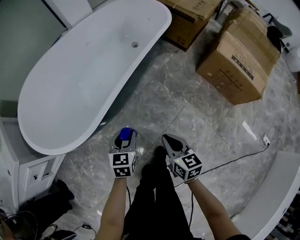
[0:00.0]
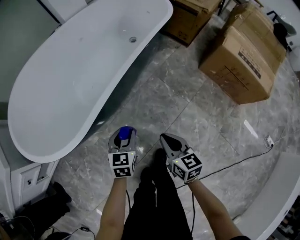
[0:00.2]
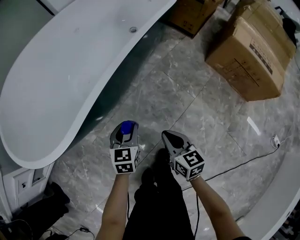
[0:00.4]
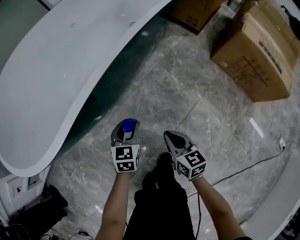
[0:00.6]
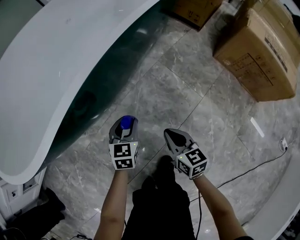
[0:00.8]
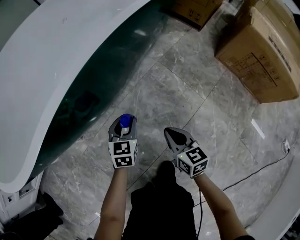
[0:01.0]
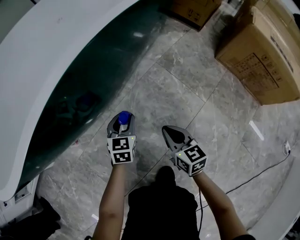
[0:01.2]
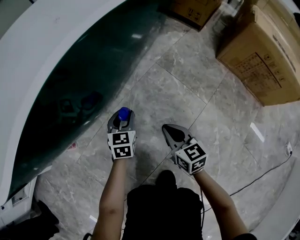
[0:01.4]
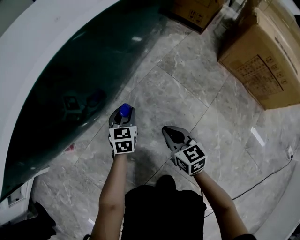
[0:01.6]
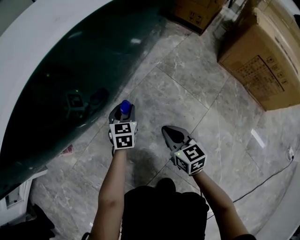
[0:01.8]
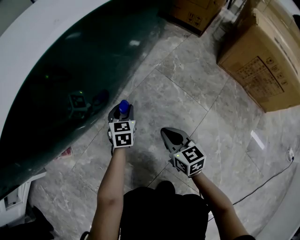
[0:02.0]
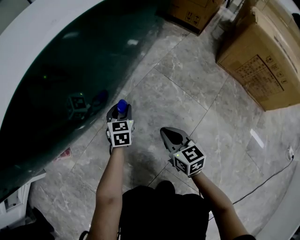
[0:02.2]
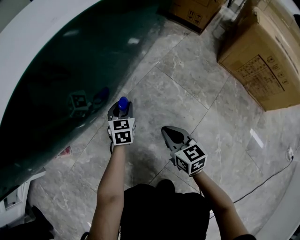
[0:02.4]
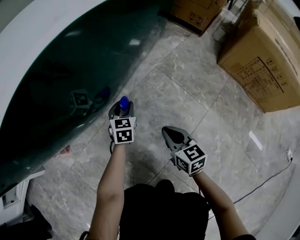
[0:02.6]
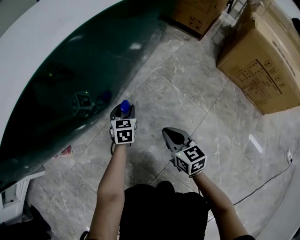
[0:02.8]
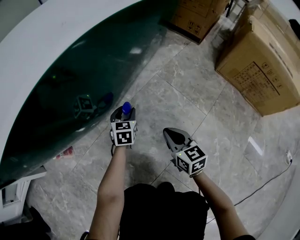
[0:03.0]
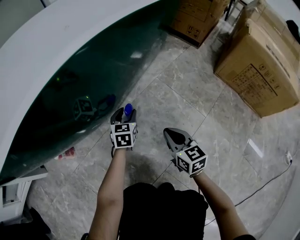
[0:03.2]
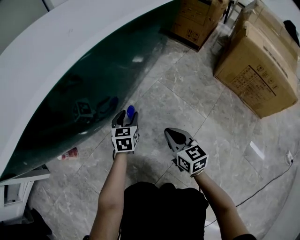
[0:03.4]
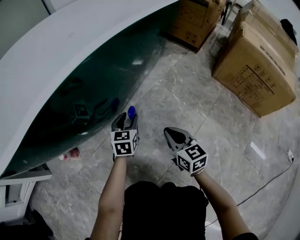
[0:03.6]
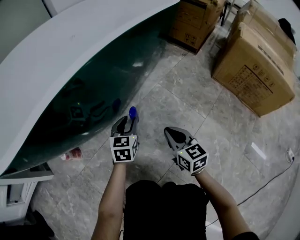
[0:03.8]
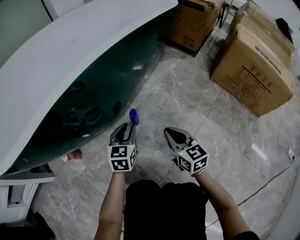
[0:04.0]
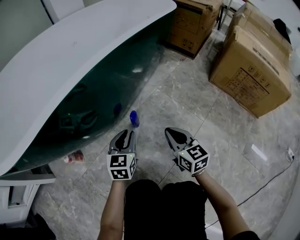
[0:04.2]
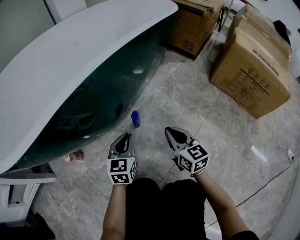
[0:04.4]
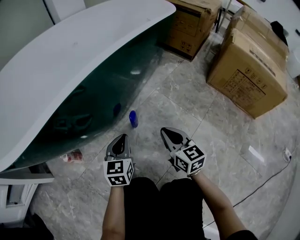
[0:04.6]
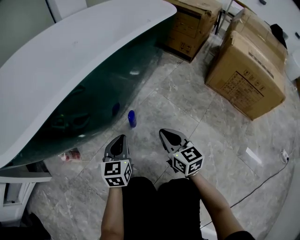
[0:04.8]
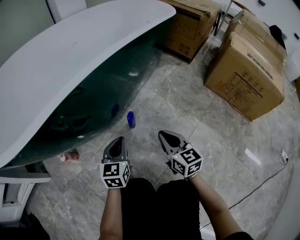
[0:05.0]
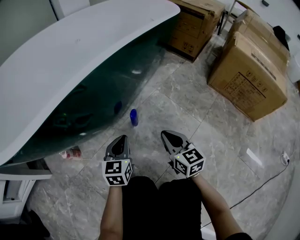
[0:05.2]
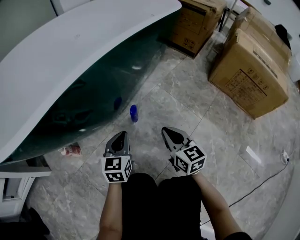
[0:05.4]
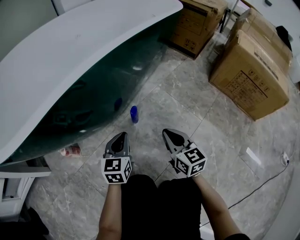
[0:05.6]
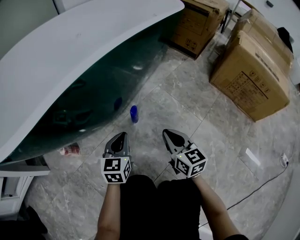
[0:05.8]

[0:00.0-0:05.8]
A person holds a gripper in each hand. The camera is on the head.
0.0 to 1.4 s: Both grippers travel together downward, about 40 cm.
1.4 to 2.8 s: The left gripper heads downward and forward, covering approximately 10 cm.
2.8 to 4.4 s: The left gripper shifts roughly 20 cm upward and backward, and closes its fingers, while the right gripper travels upward by approximately 10 cm.
4.4 to 5.8 s: The grippers stay close to where they were, moving slightly.

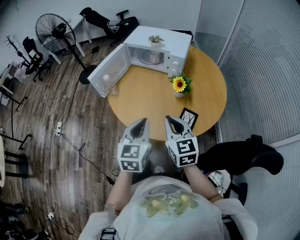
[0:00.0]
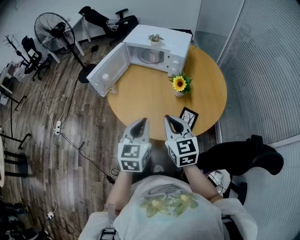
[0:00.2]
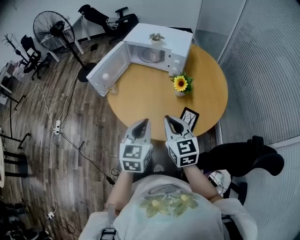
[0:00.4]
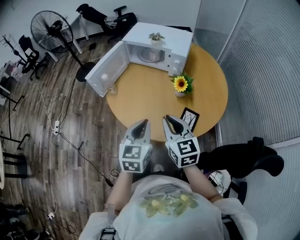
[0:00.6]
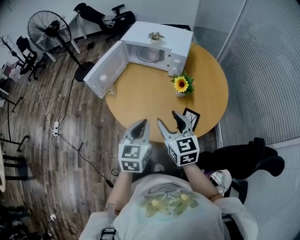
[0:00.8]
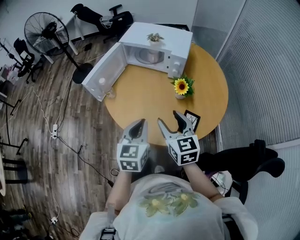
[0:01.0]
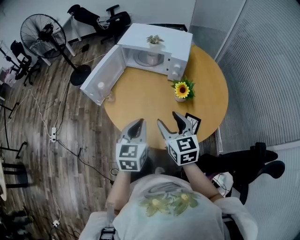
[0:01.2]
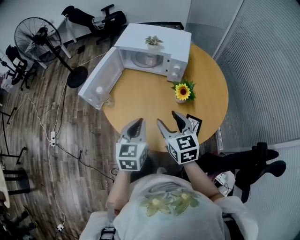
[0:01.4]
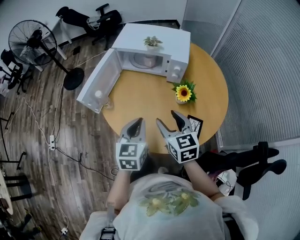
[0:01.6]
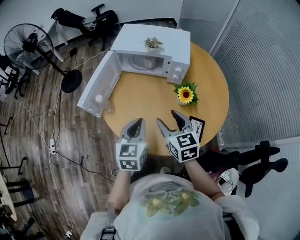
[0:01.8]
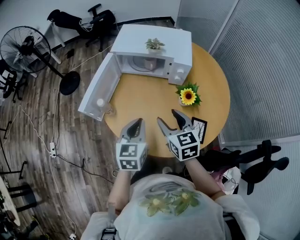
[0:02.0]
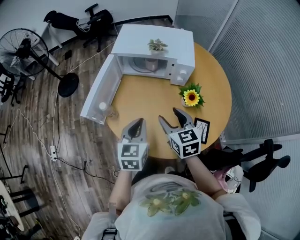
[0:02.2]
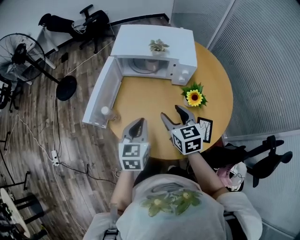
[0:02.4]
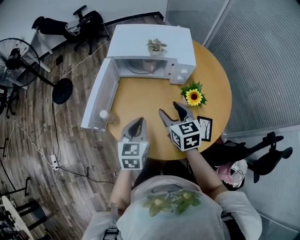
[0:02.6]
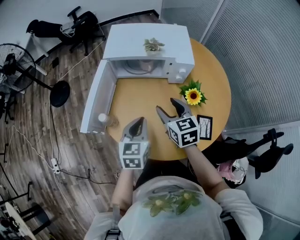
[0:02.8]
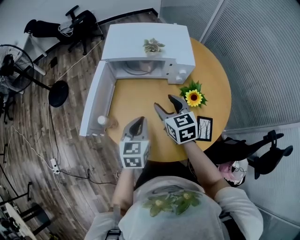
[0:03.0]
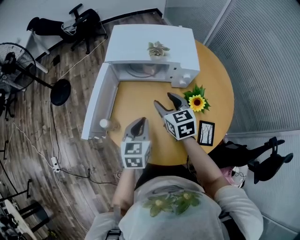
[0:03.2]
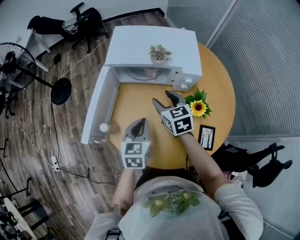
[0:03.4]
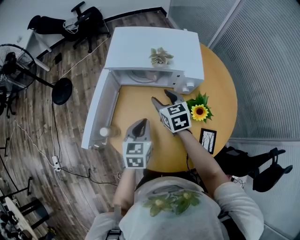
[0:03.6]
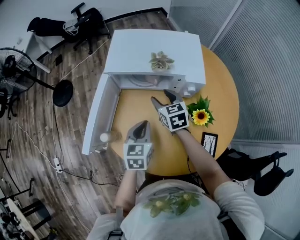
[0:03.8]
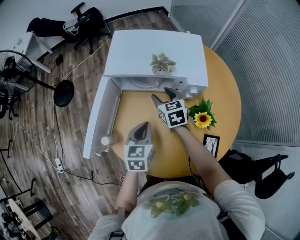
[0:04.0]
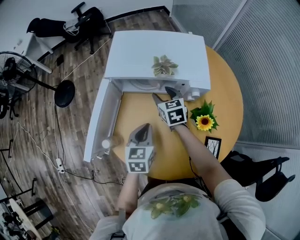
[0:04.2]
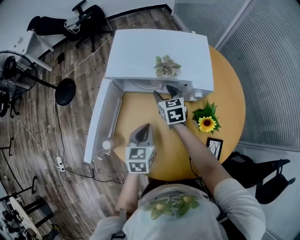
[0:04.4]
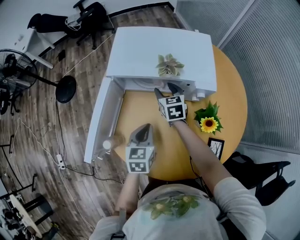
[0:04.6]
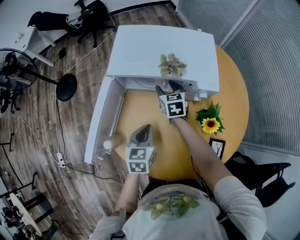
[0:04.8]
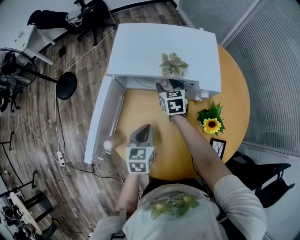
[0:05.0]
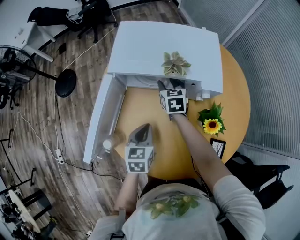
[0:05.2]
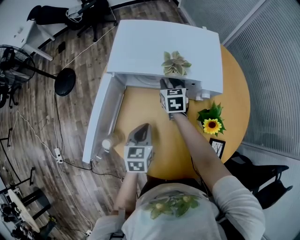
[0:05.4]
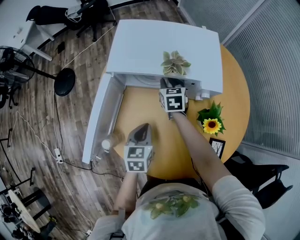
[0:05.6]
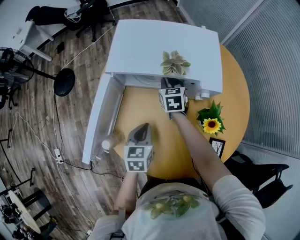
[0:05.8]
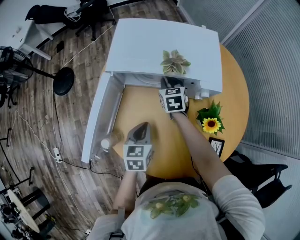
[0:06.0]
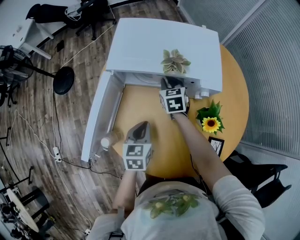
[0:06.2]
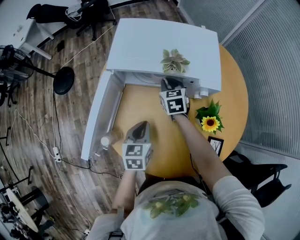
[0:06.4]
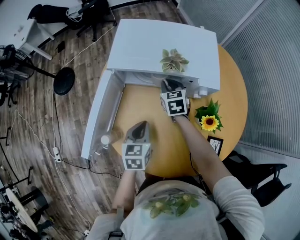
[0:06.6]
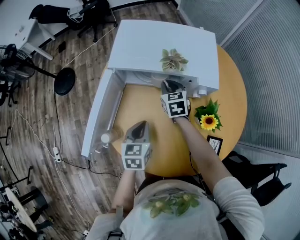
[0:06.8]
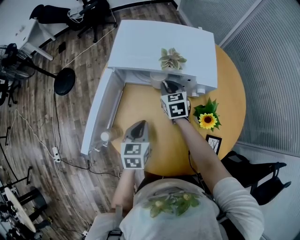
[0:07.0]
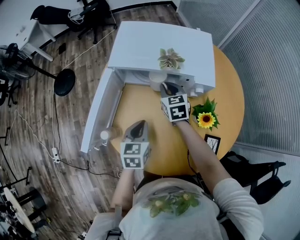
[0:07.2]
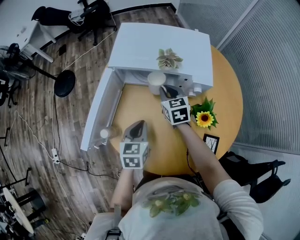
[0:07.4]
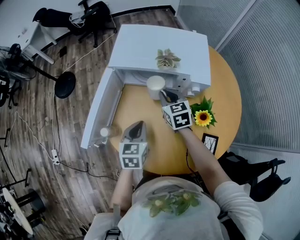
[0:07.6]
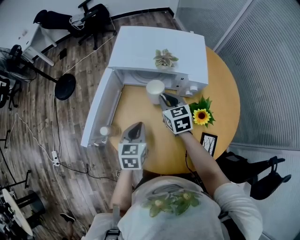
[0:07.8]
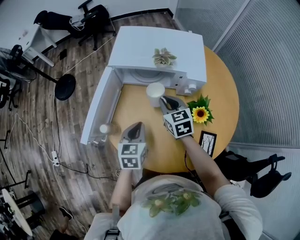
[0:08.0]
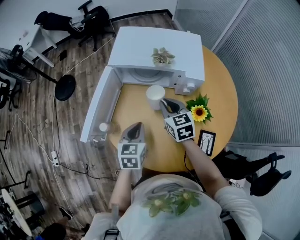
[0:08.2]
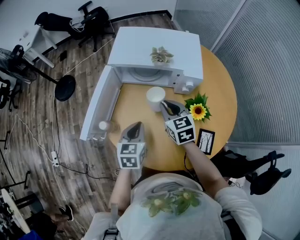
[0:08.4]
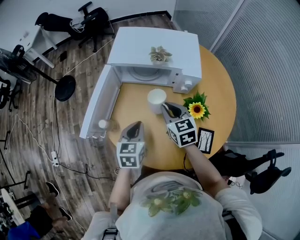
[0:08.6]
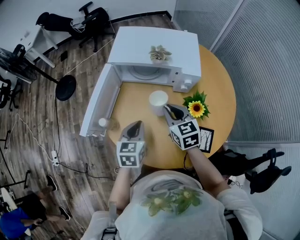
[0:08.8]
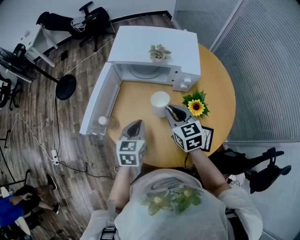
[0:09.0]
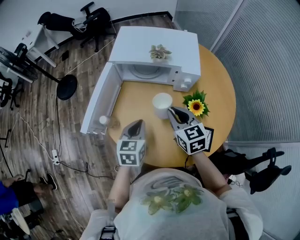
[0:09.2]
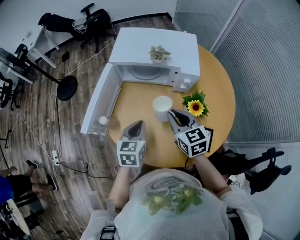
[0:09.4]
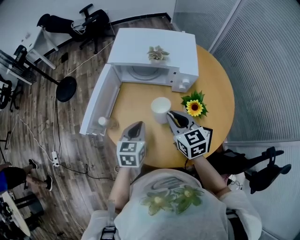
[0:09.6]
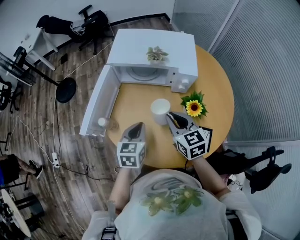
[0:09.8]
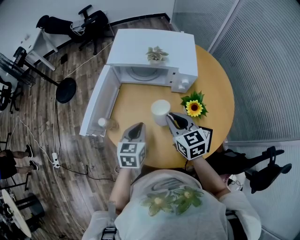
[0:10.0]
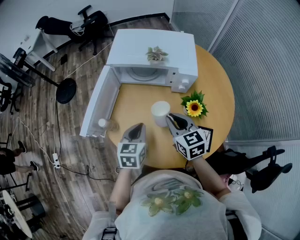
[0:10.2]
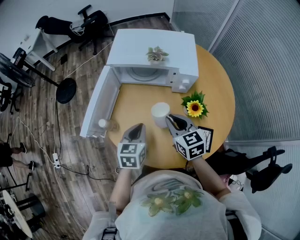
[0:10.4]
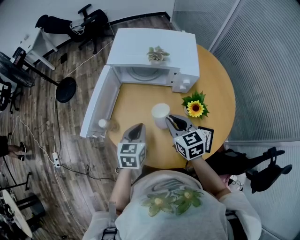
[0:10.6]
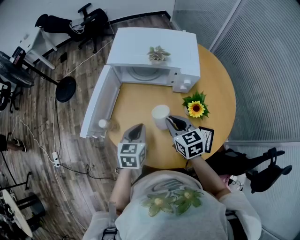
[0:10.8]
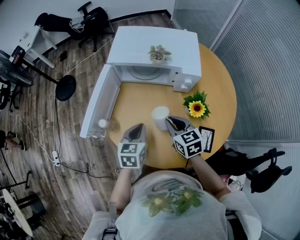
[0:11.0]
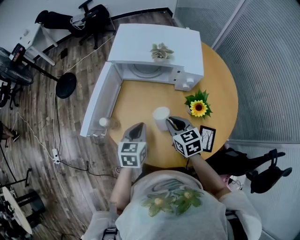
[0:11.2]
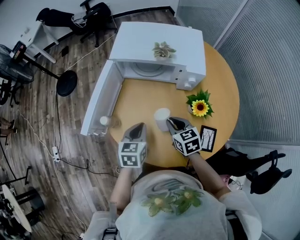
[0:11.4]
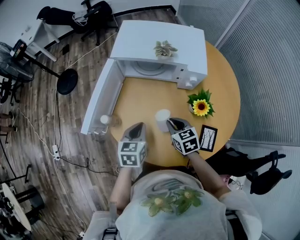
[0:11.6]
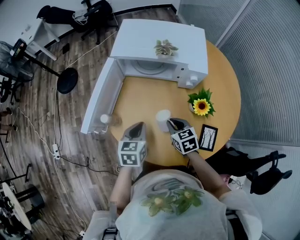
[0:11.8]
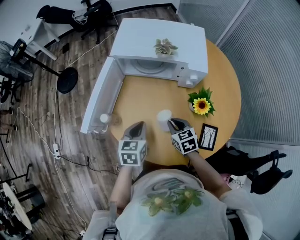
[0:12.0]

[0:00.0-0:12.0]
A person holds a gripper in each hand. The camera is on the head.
0.0 to 1.6 s: The two grippers go some 15 cm forward. The right gripper opens up.
1.6 to 3.0 s: The left gripper is displaced forward, to the left and downward by roughly 15 cm. Meanwhile the right gripper travels forward by about 15 cm.
3.0 to 4.4 s: The right gripper heads forward and downward, covering some 20 cm, while the left gripper heads forward and downward, covering approximately 10 cm.
4.4 to 6.0 s: The right gripper moves about 5 cm, and closes its fingers.
6.0 to 7.6 s: The right gripper goes about 10 cm backward and upward. Meanwhile the left gripper ends up approximately 5 cm from where it was.
7.6 to 9.0 s: The left gripper shifts roughly 5 cm backward. Meanwhile the right gripper travels backward and upward by about 15 cm.
9.0 to 10.4 s: There are only small adjustments of the grippers.
10.4 to 12.0 s: The right gripper heads downward, covering approximately 15 cm.

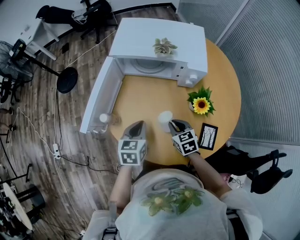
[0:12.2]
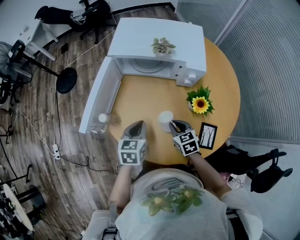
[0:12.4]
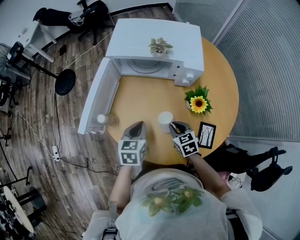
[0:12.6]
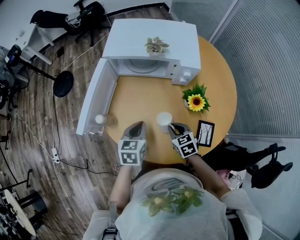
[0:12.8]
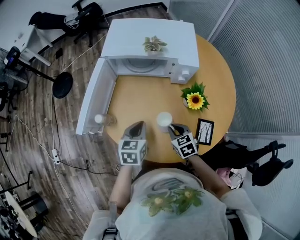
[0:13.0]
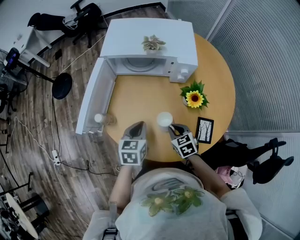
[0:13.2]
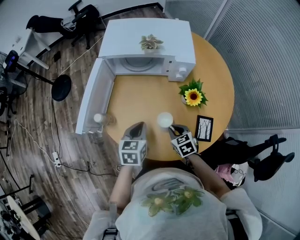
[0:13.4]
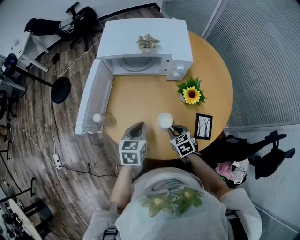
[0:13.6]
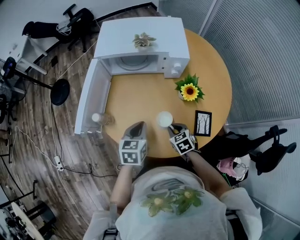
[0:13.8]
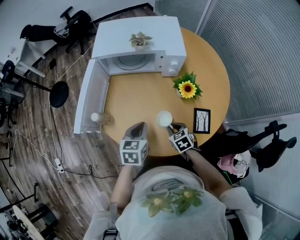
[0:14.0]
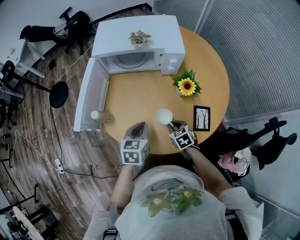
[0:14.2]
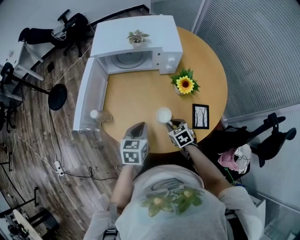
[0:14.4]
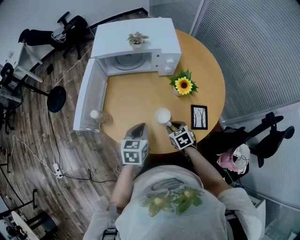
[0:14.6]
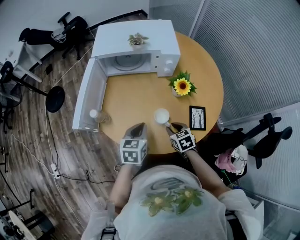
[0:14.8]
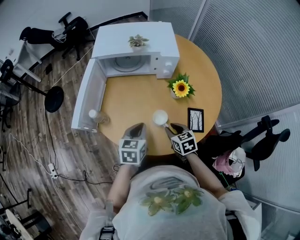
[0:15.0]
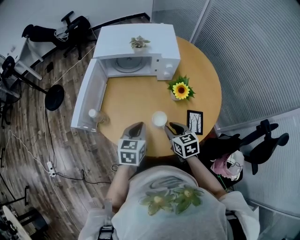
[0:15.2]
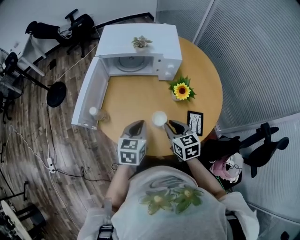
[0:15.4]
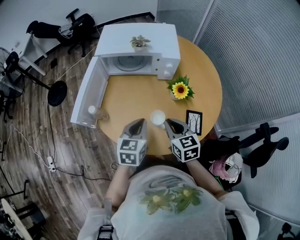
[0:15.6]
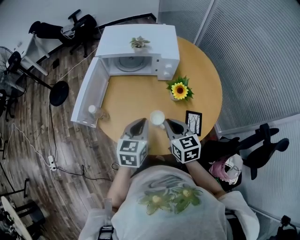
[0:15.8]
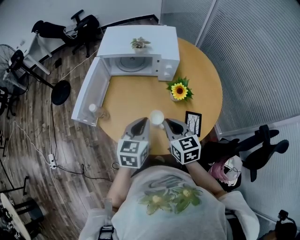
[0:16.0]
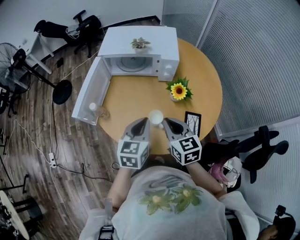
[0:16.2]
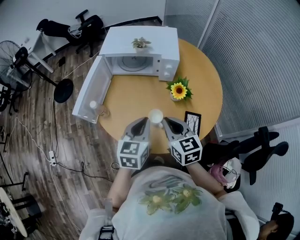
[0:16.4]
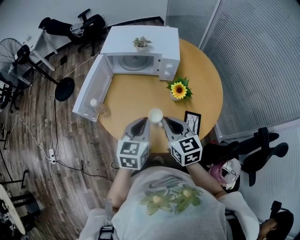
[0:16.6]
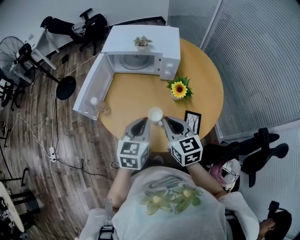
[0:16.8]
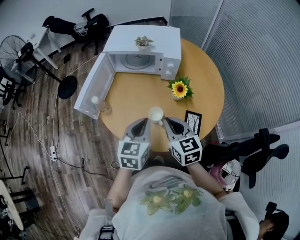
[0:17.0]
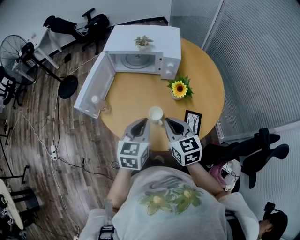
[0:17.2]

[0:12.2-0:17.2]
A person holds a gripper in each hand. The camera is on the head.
12.2 to 13.8 s: The left gripper changes place by some 5 cm; the right gripper shifts approximately 10 cm backward.
13.8 to 15.6 s: The left gripper is displaced upward by roughly 5 cm. Meanwhile the right gripper shifts some 15 cm upward, and swivels roughly 30 degrees.
15.6 to 17.2 s: The right gripper is displaced upward by some 5 cm. Meanwhile the left gripper moves upward and backward, about 10 cm.

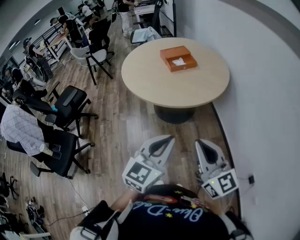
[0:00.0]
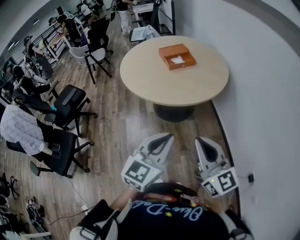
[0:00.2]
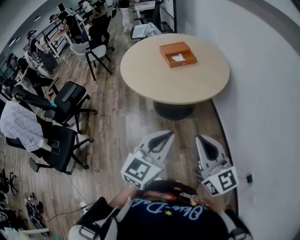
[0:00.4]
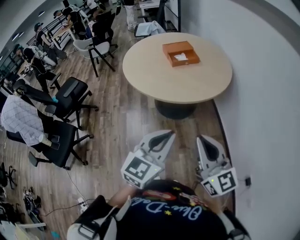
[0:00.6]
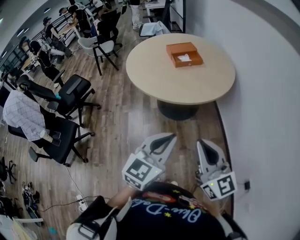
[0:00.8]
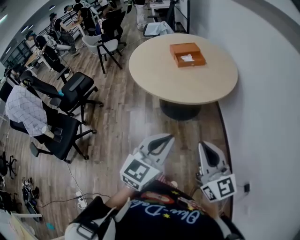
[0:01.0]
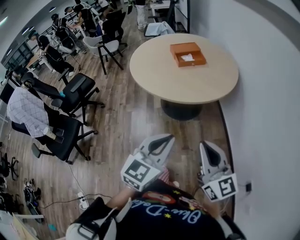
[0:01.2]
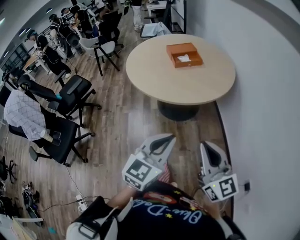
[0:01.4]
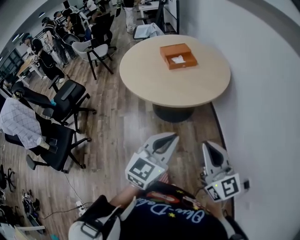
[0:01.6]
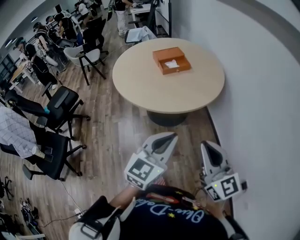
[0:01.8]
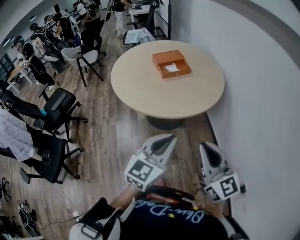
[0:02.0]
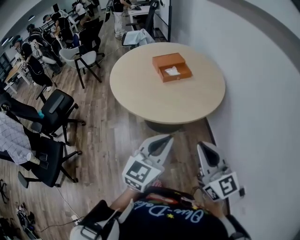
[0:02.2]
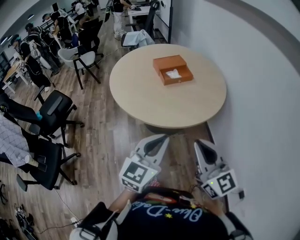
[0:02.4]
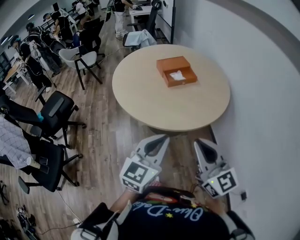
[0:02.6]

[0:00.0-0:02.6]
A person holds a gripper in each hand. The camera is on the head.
0.0 to 1.2 s: The right gripper moves about 5 cm.
1.2 to 2.6 s: The right gripper goes about 20 cm forward and to the left; the left gripper travels forward by some 15 cm.
